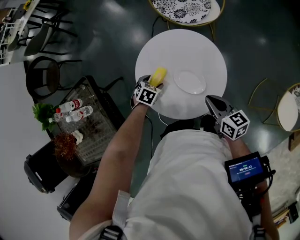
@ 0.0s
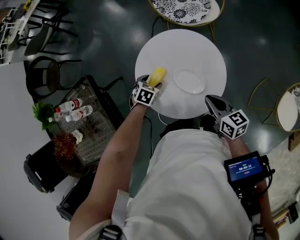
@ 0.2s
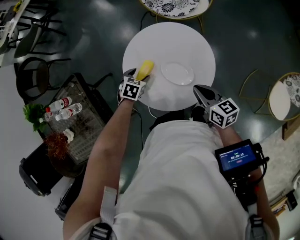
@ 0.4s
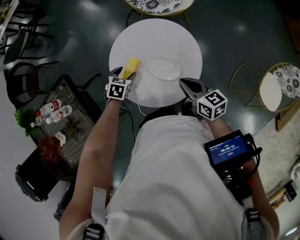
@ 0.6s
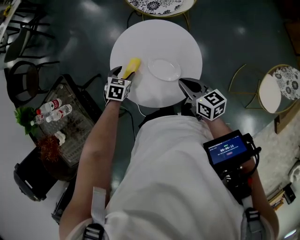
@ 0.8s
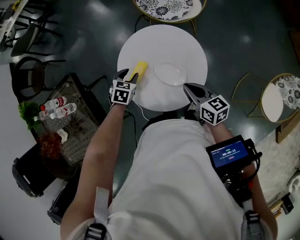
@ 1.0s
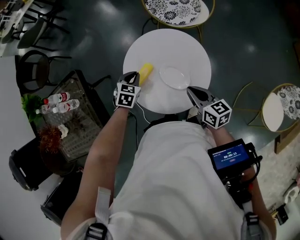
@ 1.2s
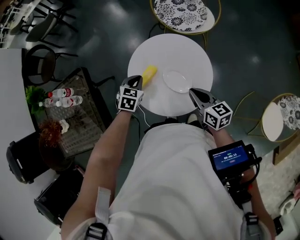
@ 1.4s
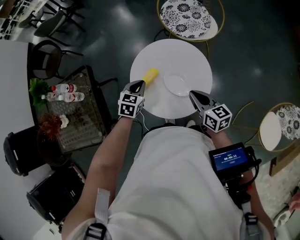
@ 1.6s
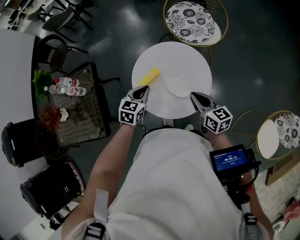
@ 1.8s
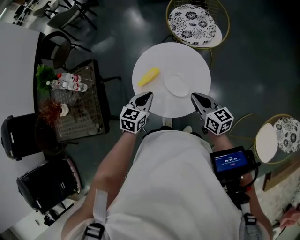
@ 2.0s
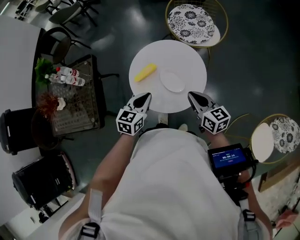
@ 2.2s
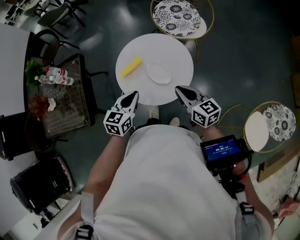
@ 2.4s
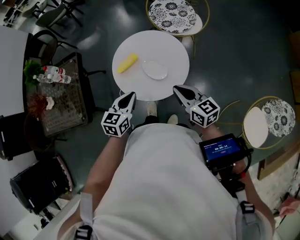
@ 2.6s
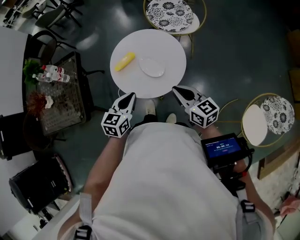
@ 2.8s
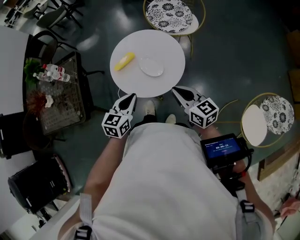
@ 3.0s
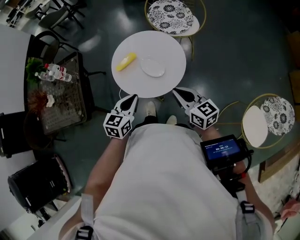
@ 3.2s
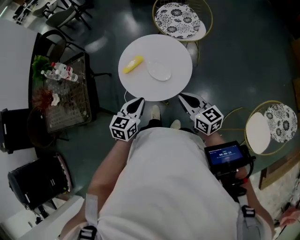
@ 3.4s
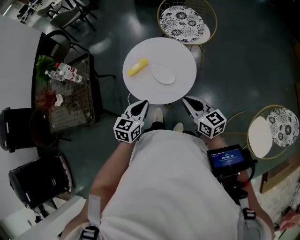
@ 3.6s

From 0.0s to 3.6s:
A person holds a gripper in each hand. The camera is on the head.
From 0.0s to 1.8s: The right gripper goes some 5 cm upward. The left gripper moves upward and backward, approximately 20 cm, angles its fingers upward, by about 30 degrees, and closes.
From 1.8s to 3.6s: The two grippers go roughly 15 cm backward.

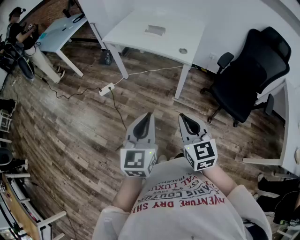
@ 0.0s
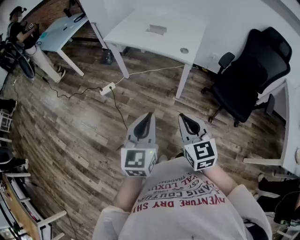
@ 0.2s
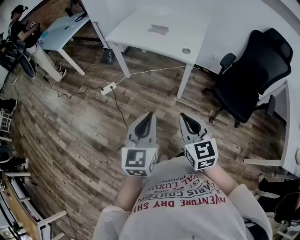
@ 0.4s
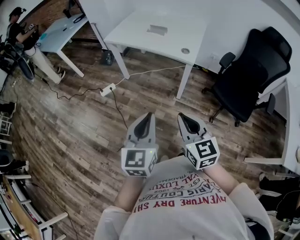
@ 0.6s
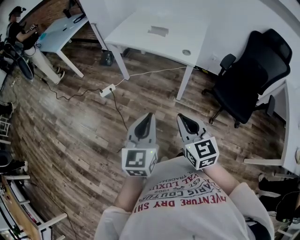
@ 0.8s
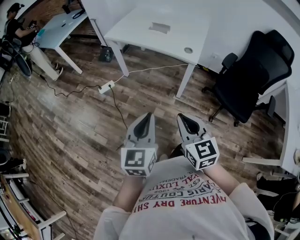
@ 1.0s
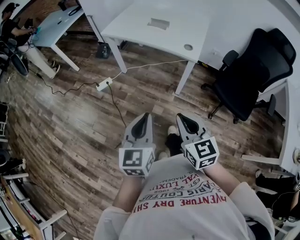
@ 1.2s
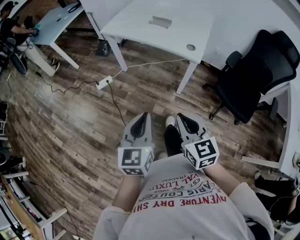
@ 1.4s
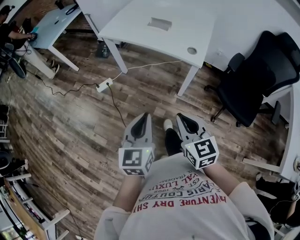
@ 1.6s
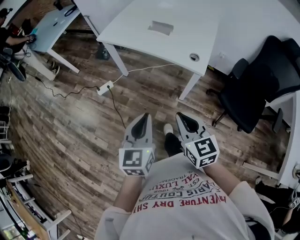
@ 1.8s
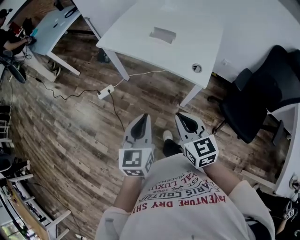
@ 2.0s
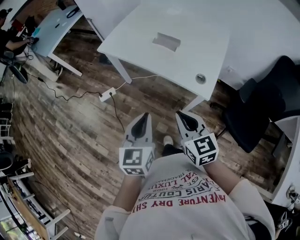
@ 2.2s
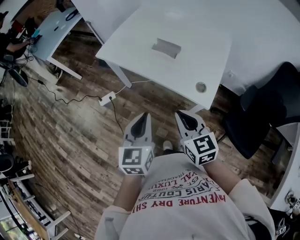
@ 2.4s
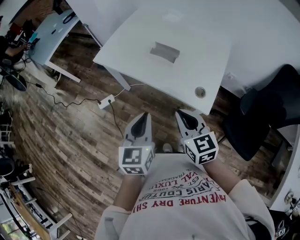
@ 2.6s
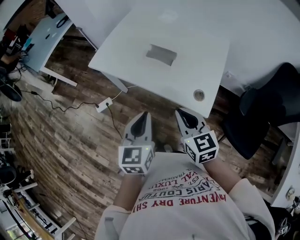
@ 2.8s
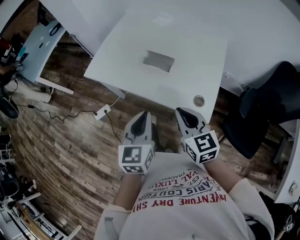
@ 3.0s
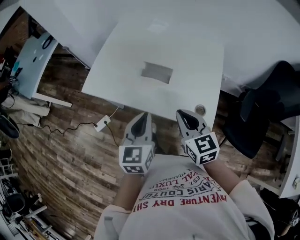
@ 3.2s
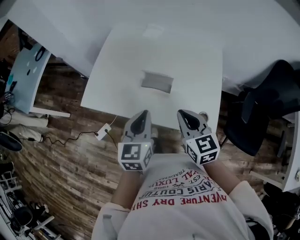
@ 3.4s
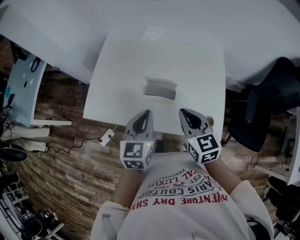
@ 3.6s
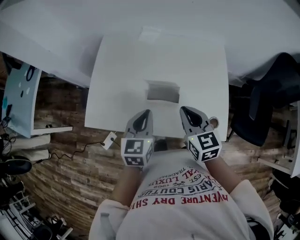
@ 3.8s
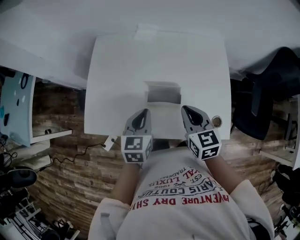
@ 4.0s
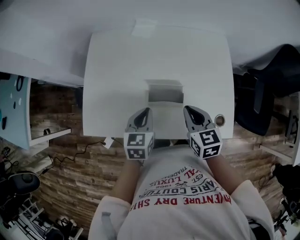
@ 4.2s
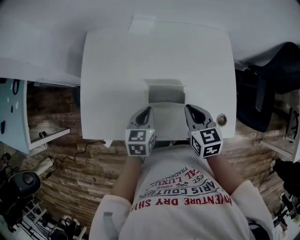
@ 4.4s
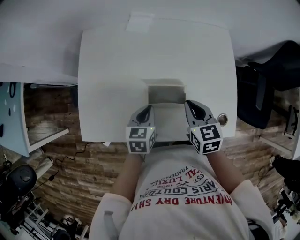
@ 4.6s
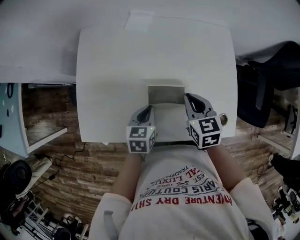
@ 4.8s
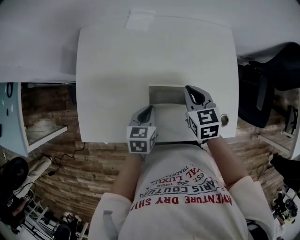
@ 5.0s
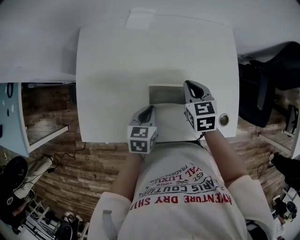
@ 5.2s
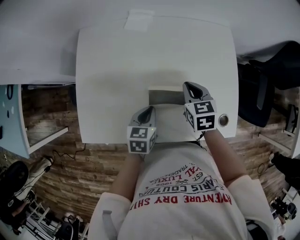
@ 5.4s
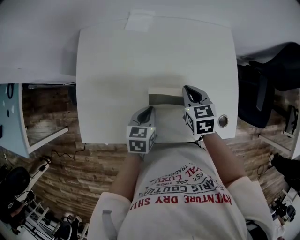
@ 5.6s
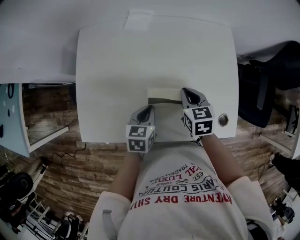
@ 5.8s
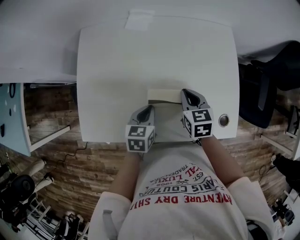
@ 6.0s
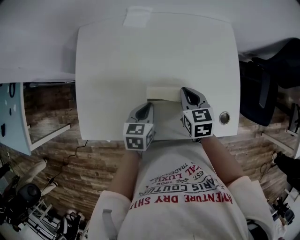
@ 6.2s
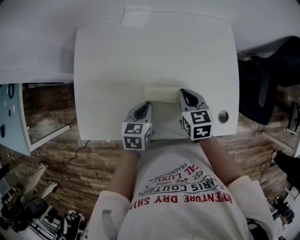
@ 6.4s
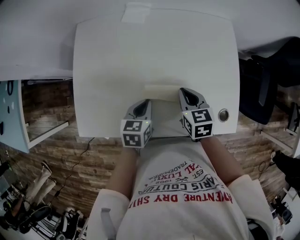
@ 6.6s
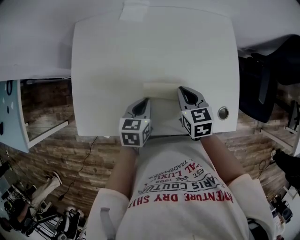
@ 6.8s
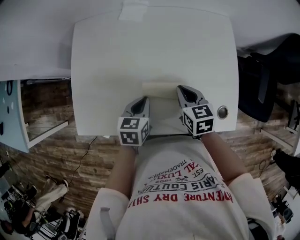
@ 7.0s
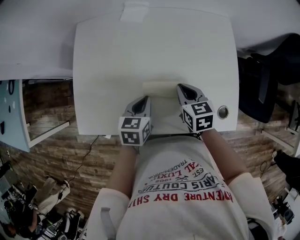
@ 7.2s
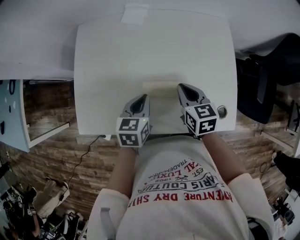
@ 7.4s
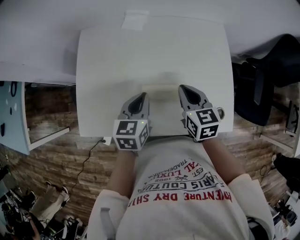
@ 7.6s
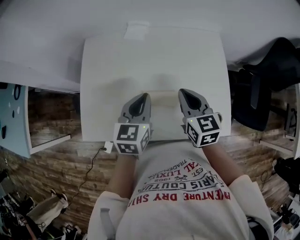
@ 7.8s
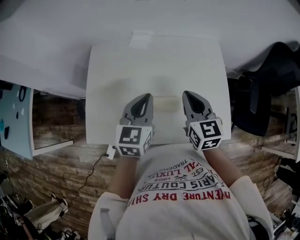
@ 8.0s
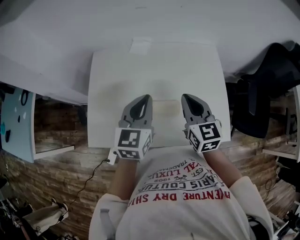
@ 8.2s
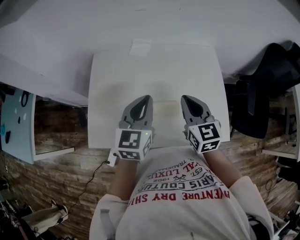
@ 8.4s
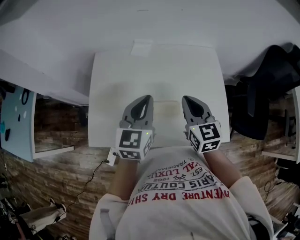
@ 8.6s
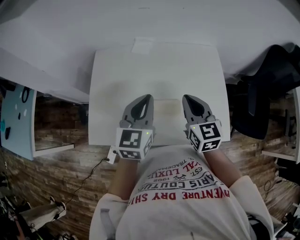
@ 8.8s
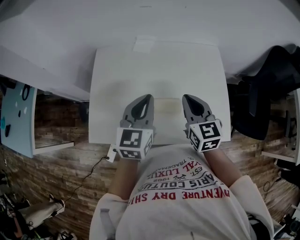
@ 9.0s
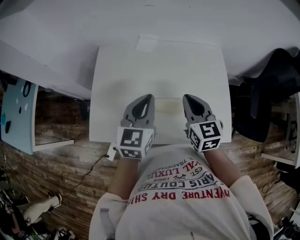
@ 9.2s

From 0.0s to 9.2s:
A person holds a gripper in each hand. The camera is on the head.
From 0.0s to 1.6s: The right gripper heads forward, covering about 10 cm, while the left gripper moves forward and downward, about 15 cm.
From 1.6s to 3.0s: Both grippers move forward, about 40 cm.
From 3.0s to 4.6s: The right gripper moves some 30 cm, and changes its angle by approximately 30 degrees. Meanwhile the left gripper ends up approximately 35 cm from where it was, and rotates roughly 40 degrees.
From 4.6s to 6.2s: The right gripper shifts by some 5 cm.
From 6.2s to 7.6s: Both grippers travel together upward, about 10 cm.
From 7.6s to 9.2s: Both grippers move upward, roughly 10 cm.

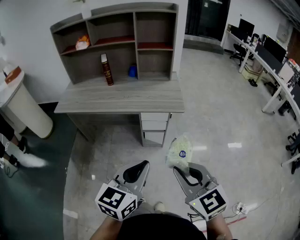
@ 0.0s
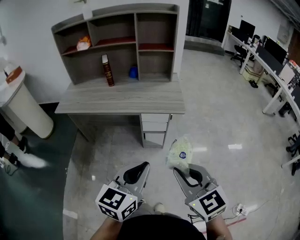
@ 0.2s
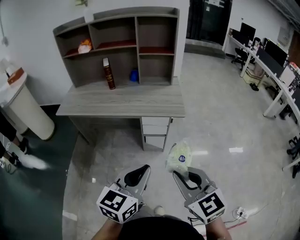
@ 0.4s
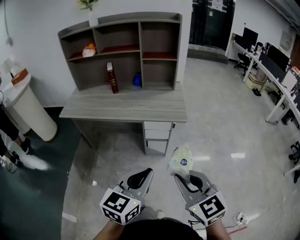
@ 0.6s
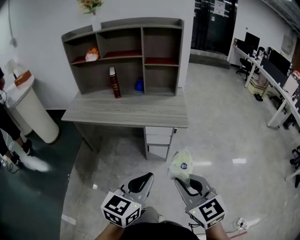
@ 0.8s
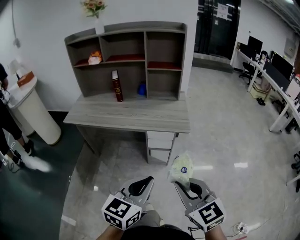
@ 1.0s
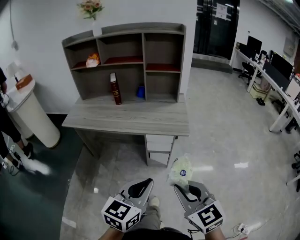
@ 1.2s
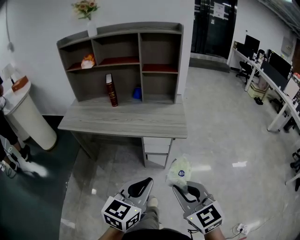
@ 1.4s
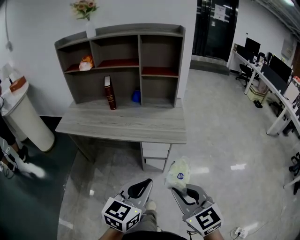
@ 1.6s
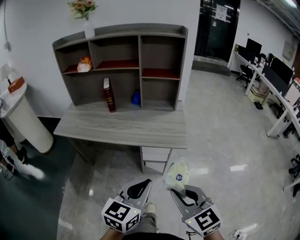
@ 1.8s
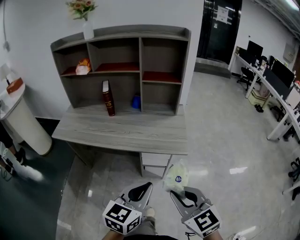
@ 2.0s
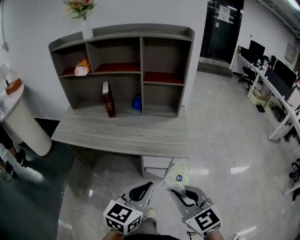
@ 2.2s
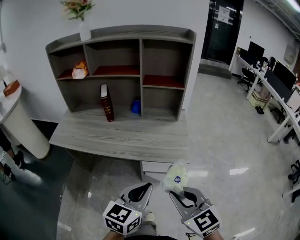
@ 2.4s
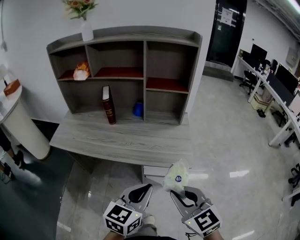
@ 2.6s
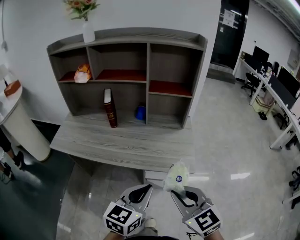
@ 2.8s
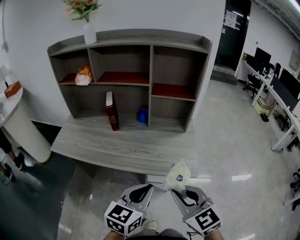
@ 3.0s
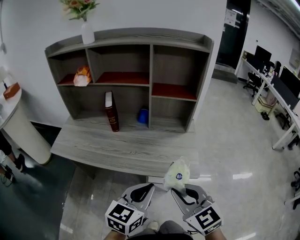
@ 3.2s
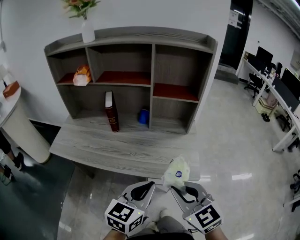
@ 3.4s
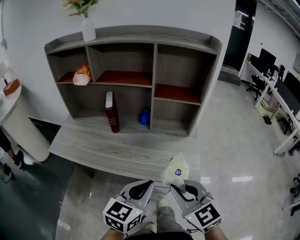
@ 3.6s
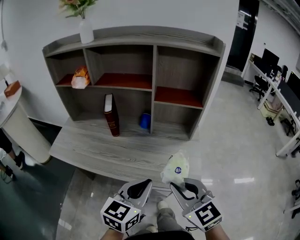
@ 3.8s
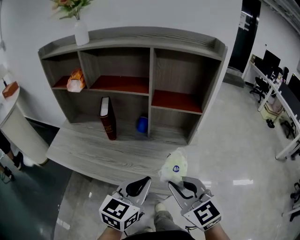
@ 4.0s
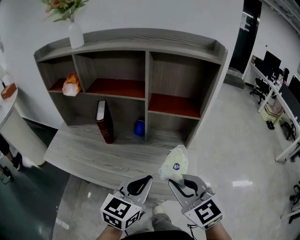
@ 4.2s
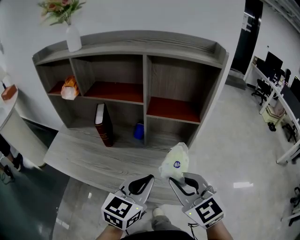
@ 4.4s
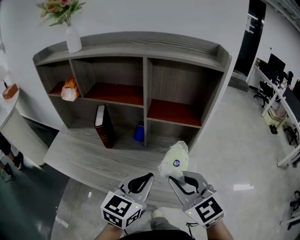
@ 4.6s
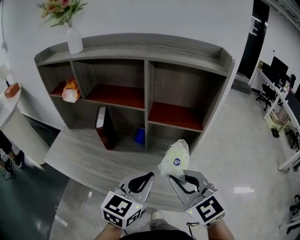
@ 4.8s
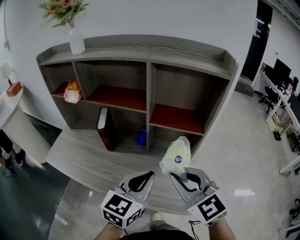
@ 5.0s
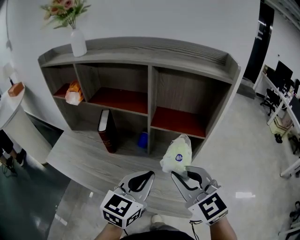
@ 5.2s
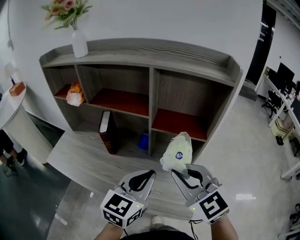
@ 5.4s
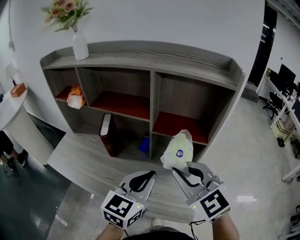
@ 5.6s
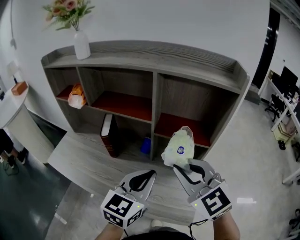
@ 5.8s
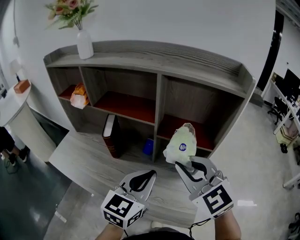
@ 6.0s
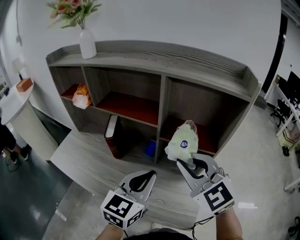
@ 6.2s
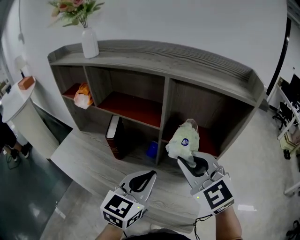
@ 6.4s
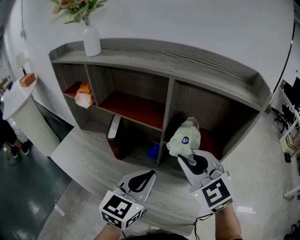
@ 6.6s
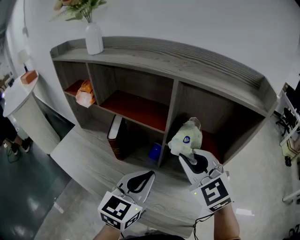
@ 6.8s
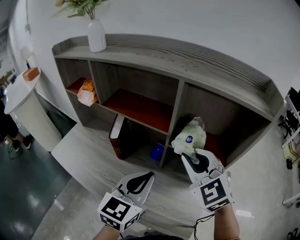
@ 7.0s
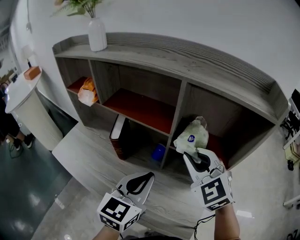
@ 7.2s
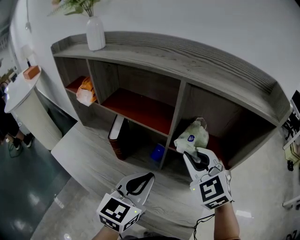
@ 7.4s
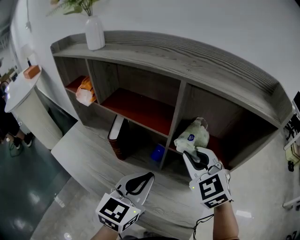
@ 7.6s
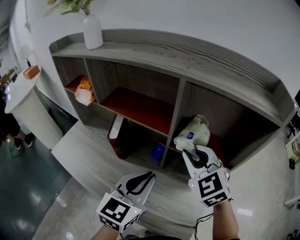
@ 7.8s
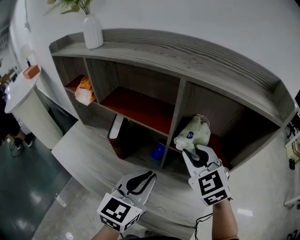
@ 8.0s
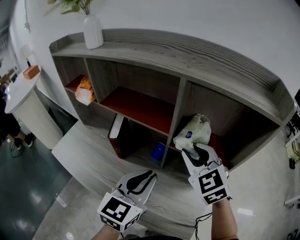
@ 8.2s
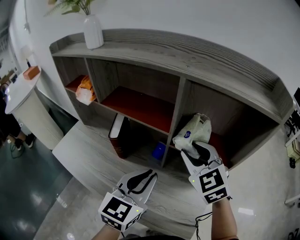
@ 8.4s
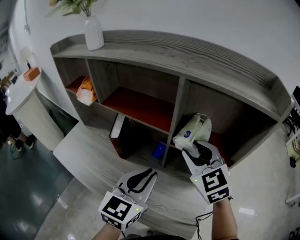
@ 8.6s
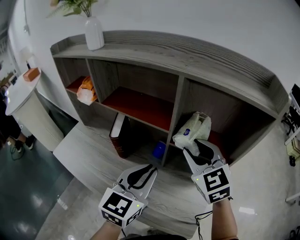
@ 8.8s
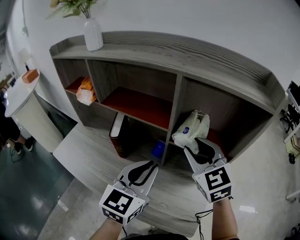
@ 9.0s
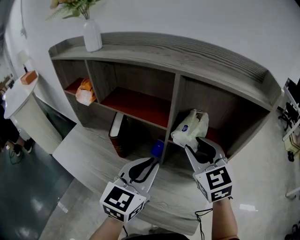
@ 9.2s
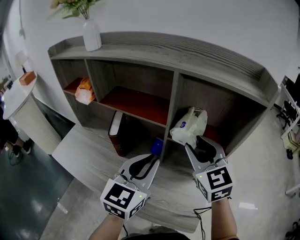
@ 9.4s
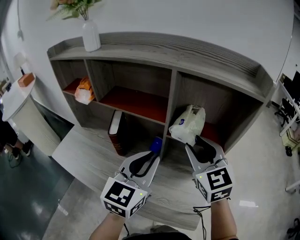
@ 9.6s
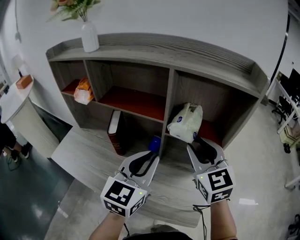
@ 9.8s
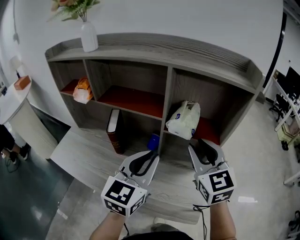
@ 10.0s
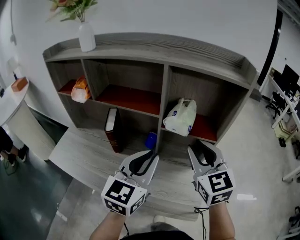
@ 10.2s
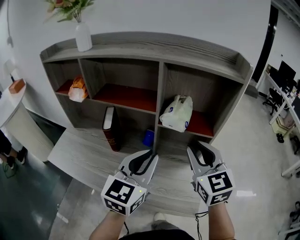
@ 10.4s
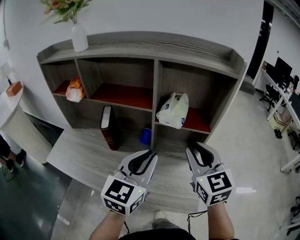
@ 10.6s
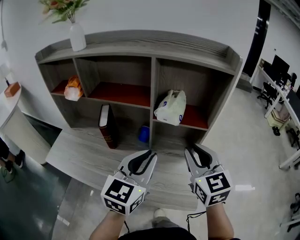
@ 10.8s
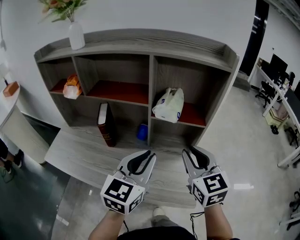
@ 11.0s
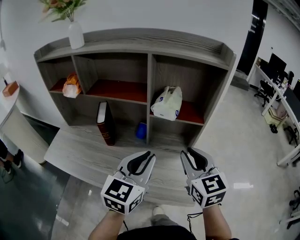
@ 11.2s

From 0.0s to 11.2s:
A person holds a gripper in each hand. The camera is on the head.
From 0.0s to 1.6s: The grippers both shift forward by some 10 cm.
From 1.6s to 3.2s: Both grippers move forward, about 20 cm.
From 3.2s to 4.8s: The two grippers go about 20 cm forward.
From 4.8s to 6.4s: The left gripper heads forward, covering some 10 cm; the right gripper goes about 15 cm forward and upward.
From 6.4s to 8.0s: The left gripper shifts by about 5 cm. The right gripper heads forward and downward, covering roughly 10 cm.
From 8.0s to 9.6s: The right gripper moves roughly 5 cm, swivels about 20 degrees, and opens.
From 9.6s to 11.2s: The grippers both shift backward by roughly 10 cm.
